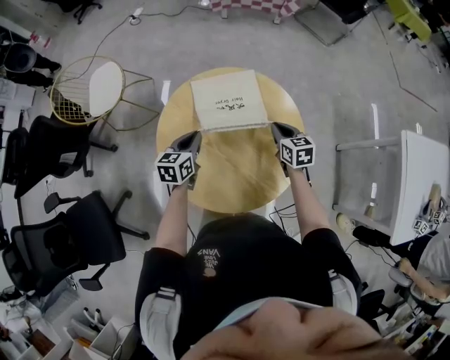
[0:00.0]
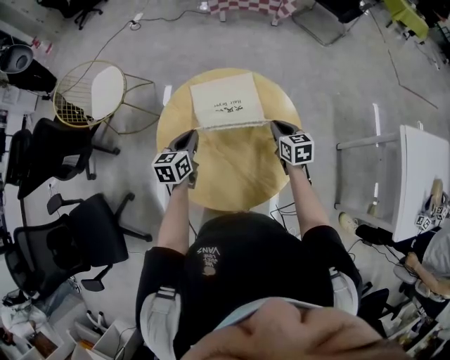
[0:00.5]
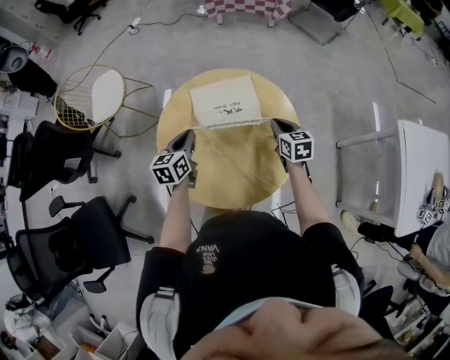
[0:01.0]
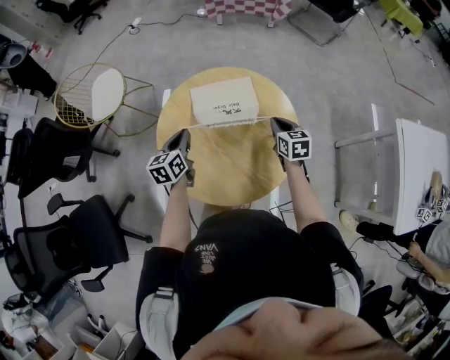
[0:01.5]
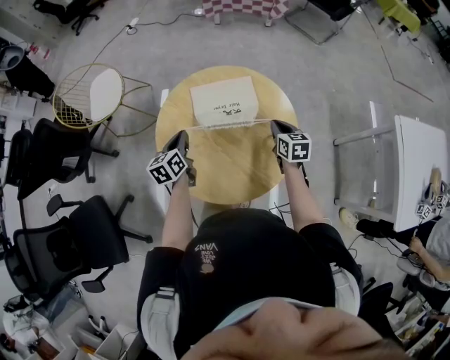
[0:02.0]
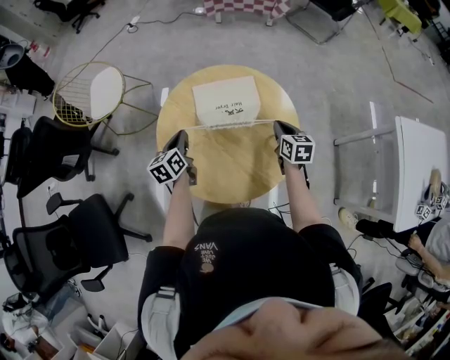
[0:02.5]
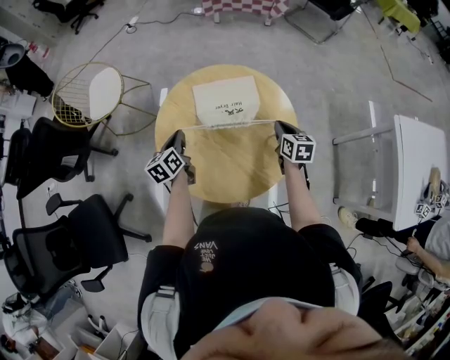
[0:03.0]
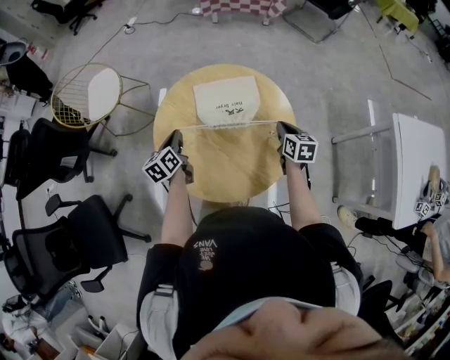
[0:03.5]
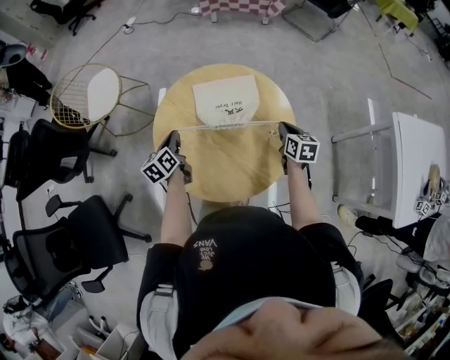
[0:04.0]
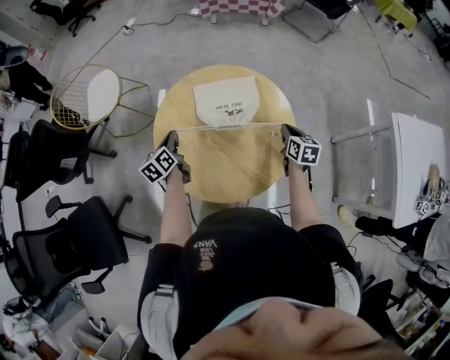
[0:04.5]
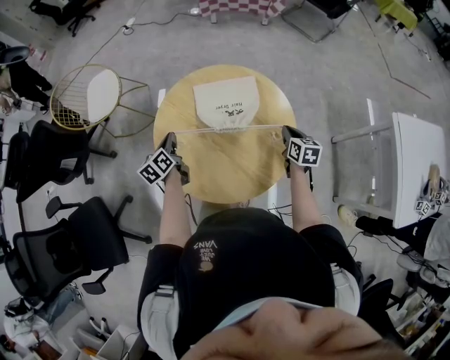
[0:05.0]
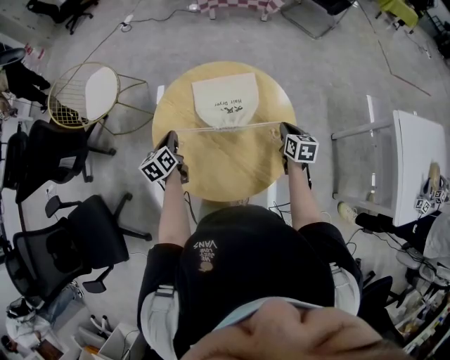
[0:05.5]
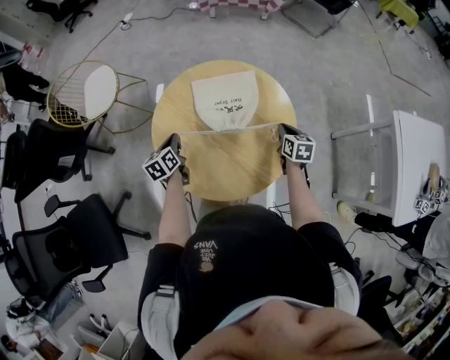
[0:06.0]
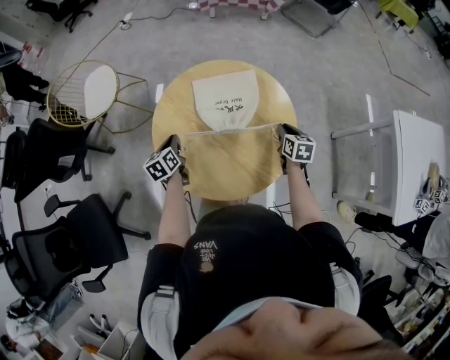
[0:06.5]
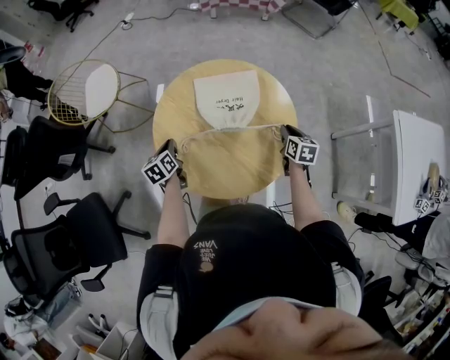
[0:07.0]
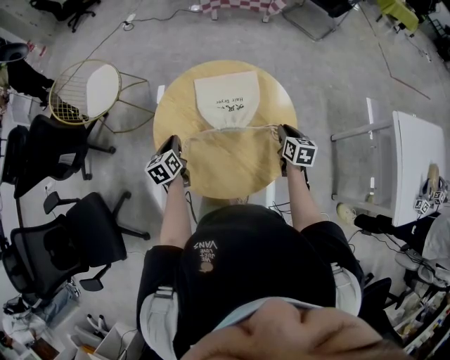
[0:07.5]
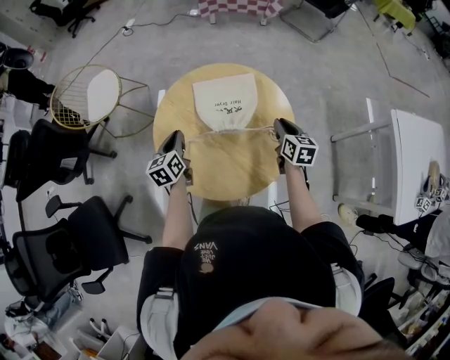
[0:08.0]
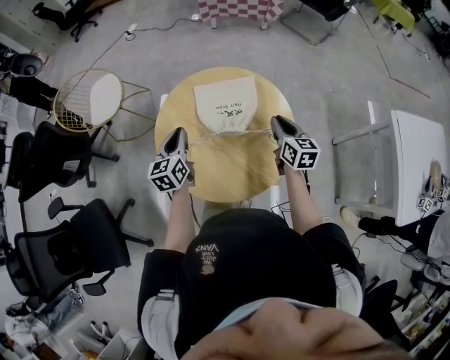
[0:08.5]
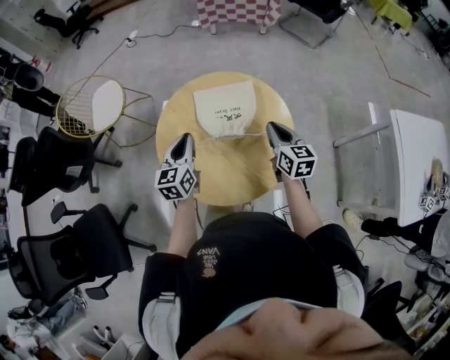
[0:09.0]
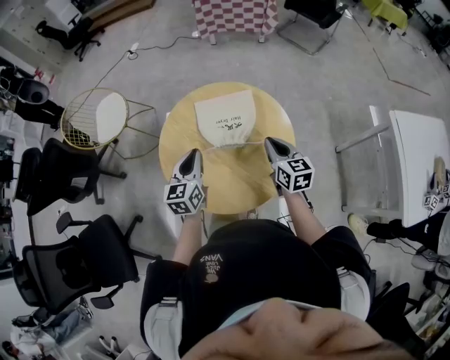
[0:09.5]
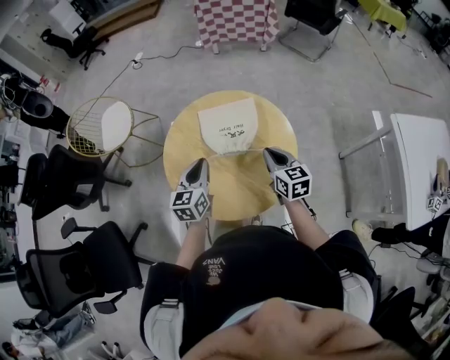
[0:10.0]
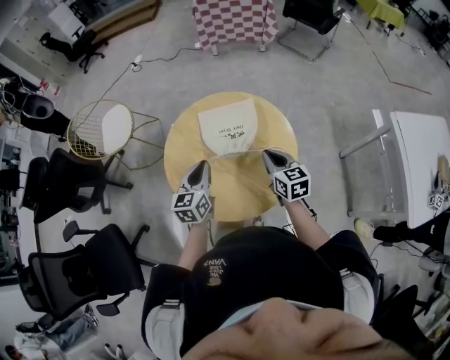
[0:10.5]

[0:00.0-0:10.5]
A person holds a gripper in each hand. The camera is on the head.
0:00.0 to 0:02.0: The left gripper ends up some 5 cm from where it was.
0:02.0 to 0:04.0: The grippers move only a little.
0:04.0 to 0:06.5: The grippers stay close to where they were, moving slightly.
0:06.5 to 0:08.5: The right gripper travels upward by some 15 cm, and changes its angle by roughly 20 degrees; the left gripper is displaced upward and to the right by approximately 15 cm, and changes its angle by some 20 degrees.
0:08.5 to 0:10.5: The left gripper travels to the right and backward by about 10 cm, while the right gripper is displaced backward by roughly 5 cm.

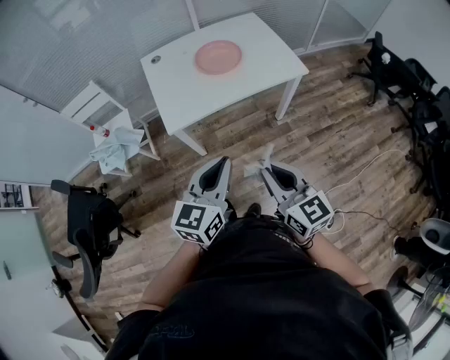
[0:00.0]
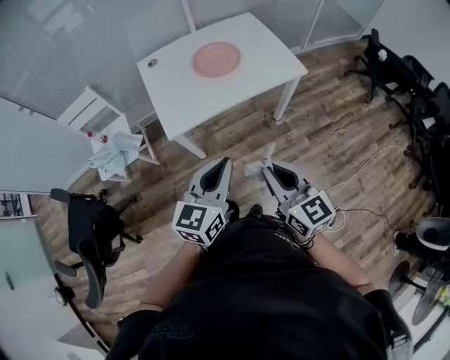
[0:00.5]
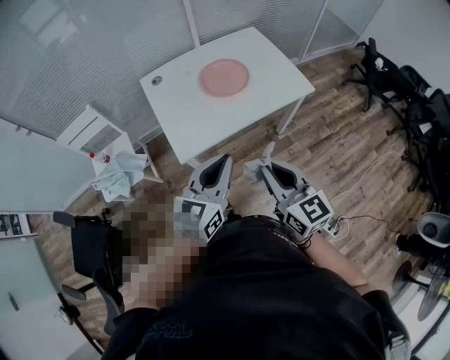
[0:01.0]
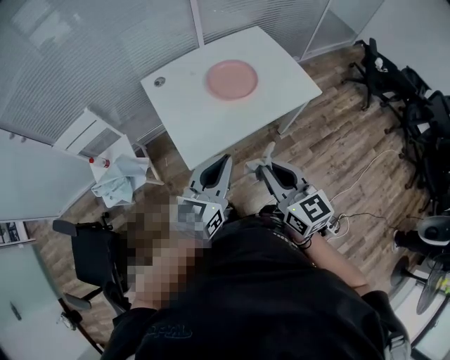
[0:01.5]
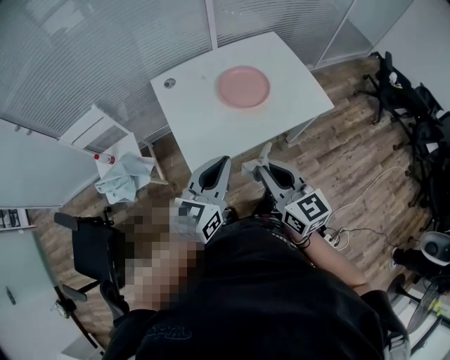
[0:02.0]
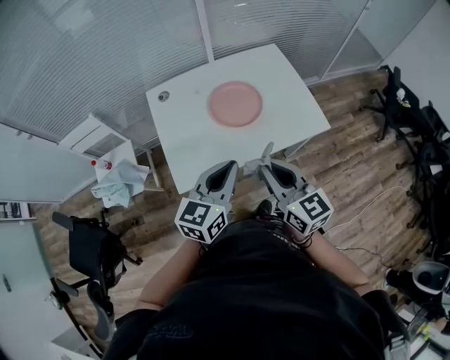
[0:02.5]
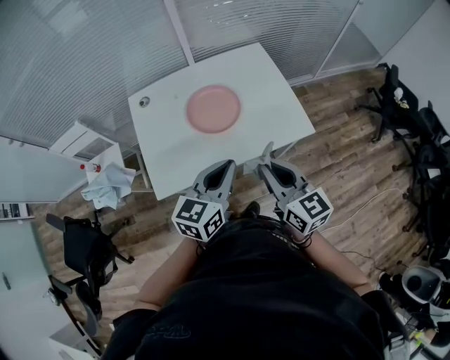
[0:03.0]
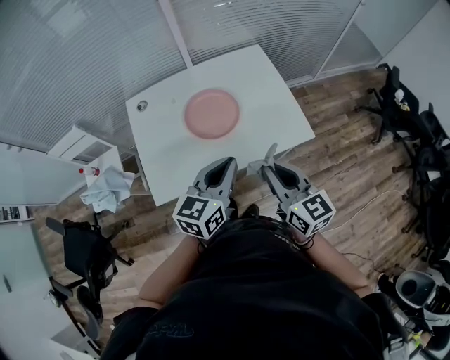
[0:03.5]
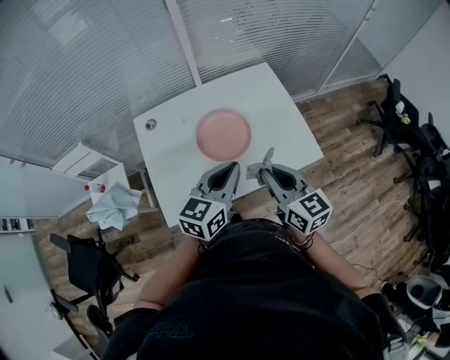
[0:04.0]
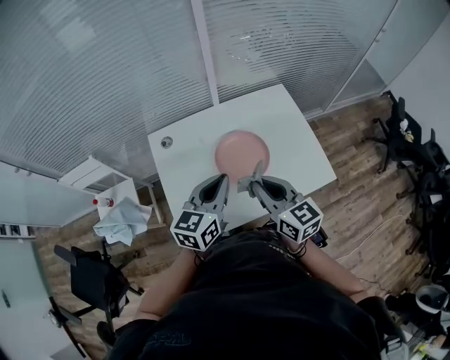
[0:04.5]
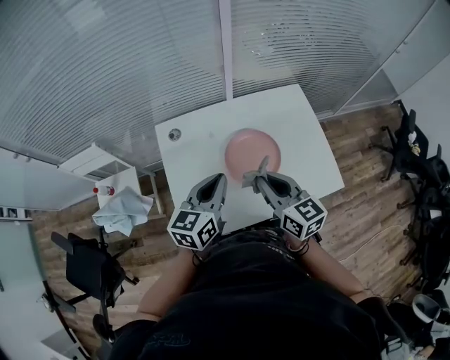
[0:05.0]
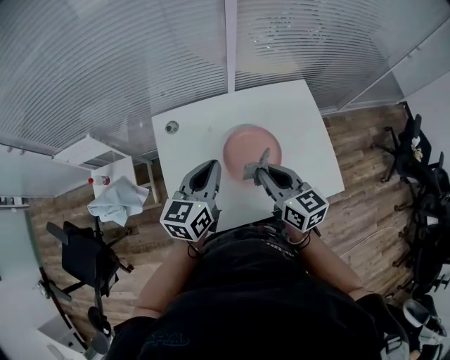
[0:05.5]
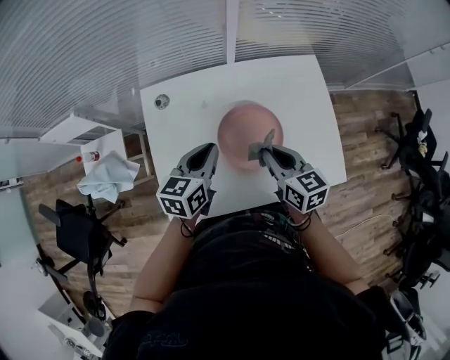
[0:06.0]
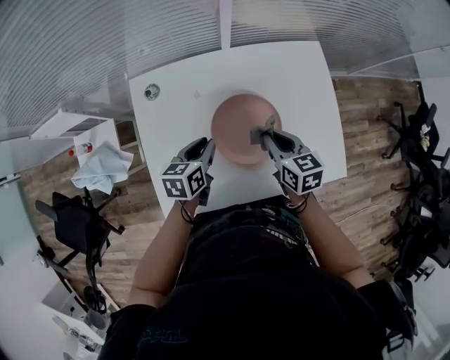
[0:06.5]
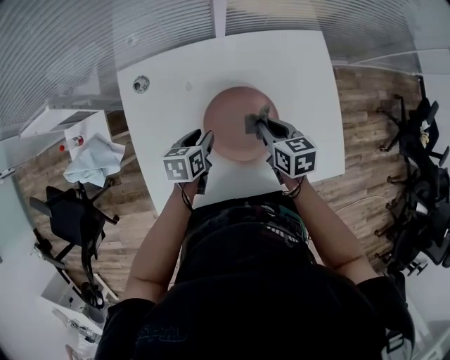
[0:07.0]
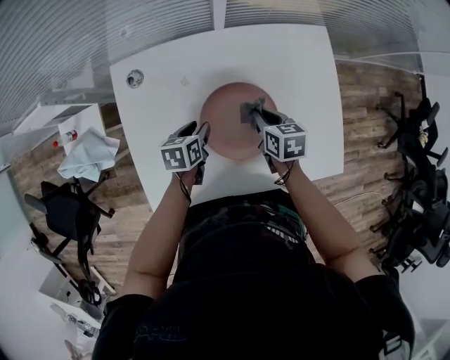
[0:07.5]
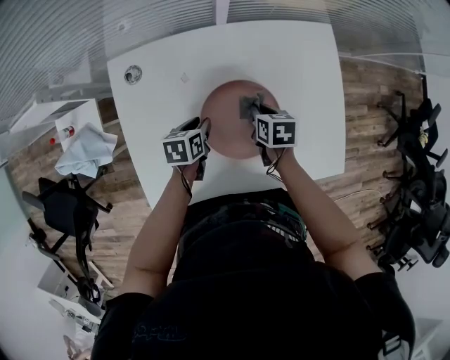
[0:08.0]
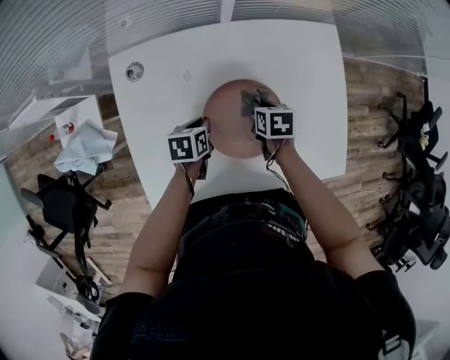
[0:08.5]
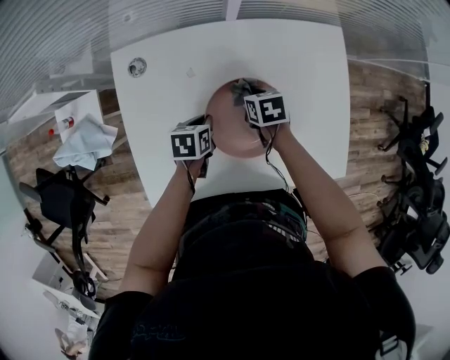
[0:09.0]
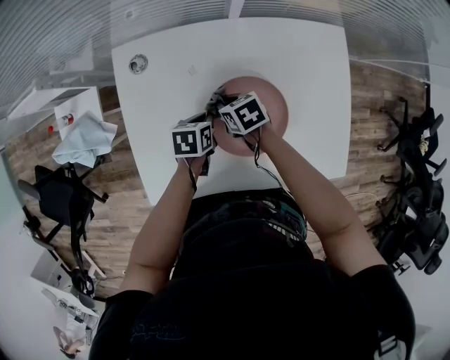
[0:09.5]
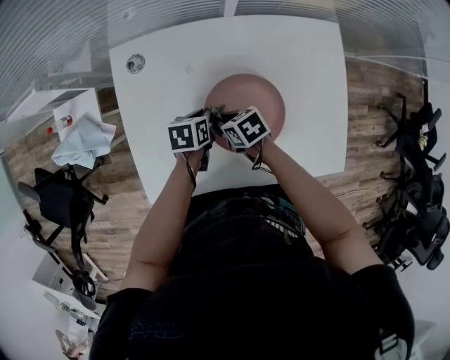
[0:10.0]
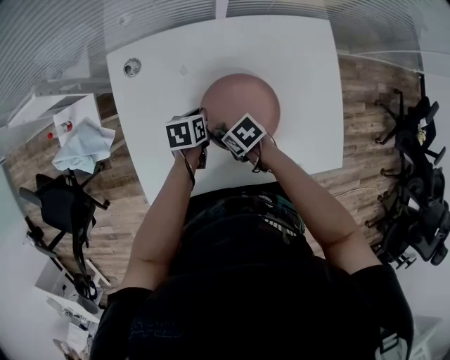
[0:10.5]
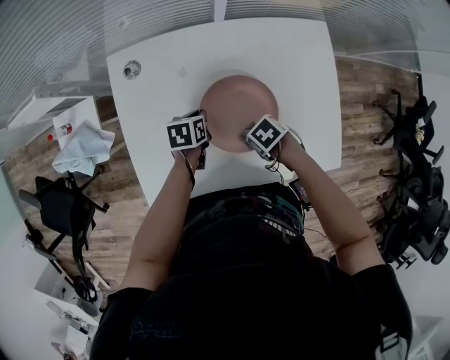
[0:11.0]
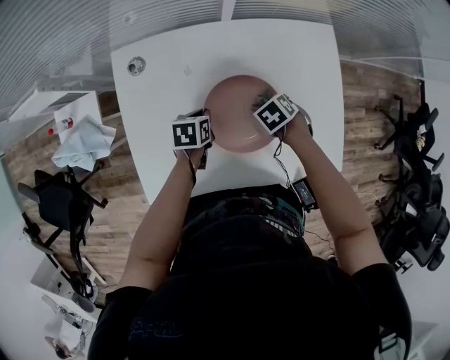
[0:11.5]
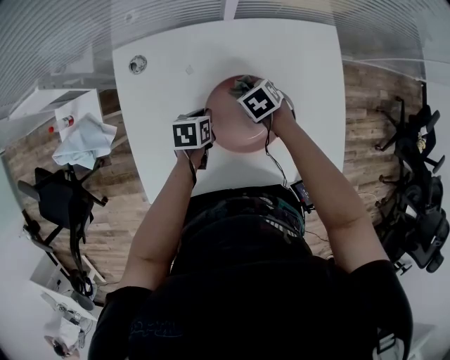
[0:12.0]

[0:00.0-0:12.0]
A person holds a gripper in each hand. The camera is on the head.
0:00.0 to 0:02.0: The two grippers go some 25 cm forward and to the left.
0:02.0 to 0:04.0: The two grippers go roughly 25 cm forward and to the right.
0:04.0 to 0:06.0: The right gripper travels forward, downward and to the left by approximately 20 cm; the left gripper shifts some 25 cm forward, to the left and downward, and turns by some 20 degrees.
0:06.0 to 0:08.0: The left gripper travels downward by some 20 cm, swivels roughly 30 degrees, and opens up. The right gripper shifts roughly 20 cm downward and forward, and changes its angle by roughly 30 degrees.
0:08.0 to 0:10.0: The left gripper closes up, while the right gripper shifts by some 15 cm, and changes its angle by roughly 30 degrees.
0:10.0 to 0:12.0: The right gripper changes place by about 15 cm, and changes its angle by about 30 degrees.

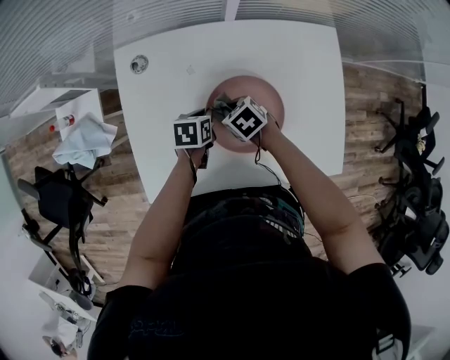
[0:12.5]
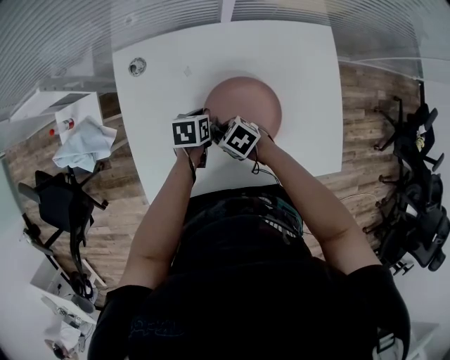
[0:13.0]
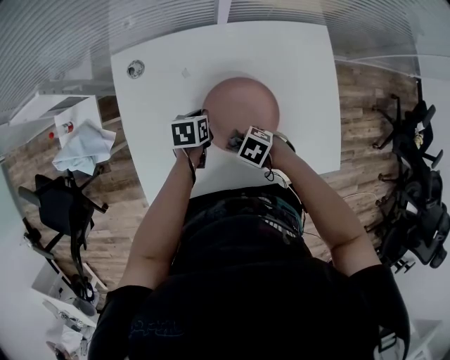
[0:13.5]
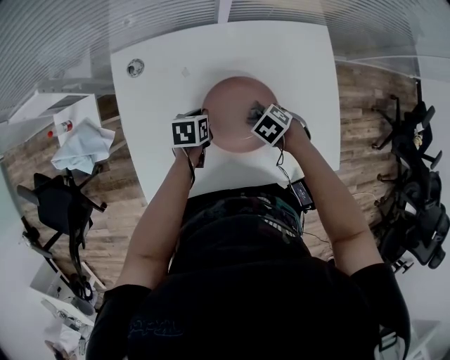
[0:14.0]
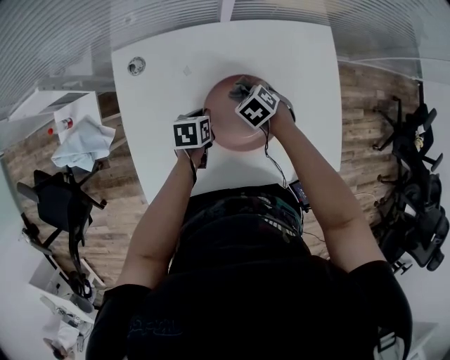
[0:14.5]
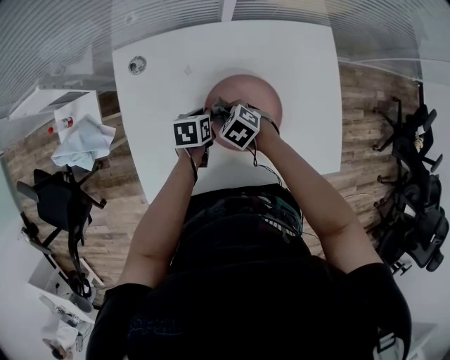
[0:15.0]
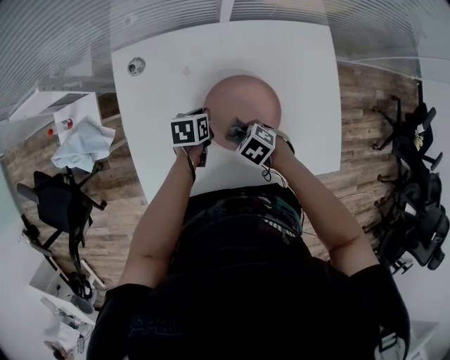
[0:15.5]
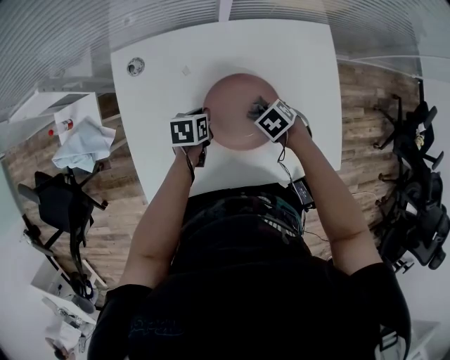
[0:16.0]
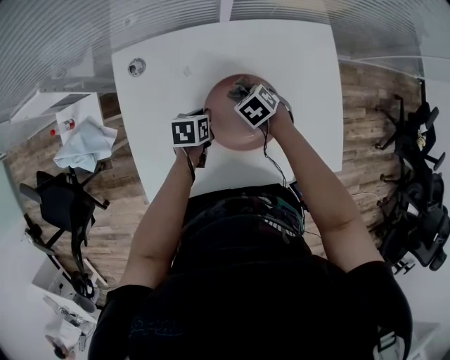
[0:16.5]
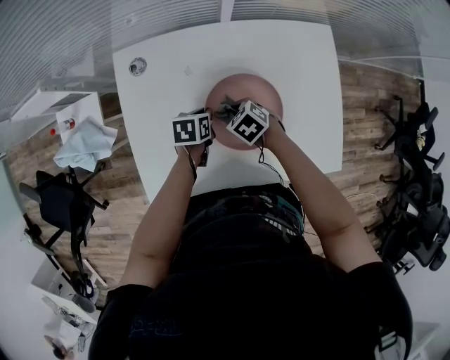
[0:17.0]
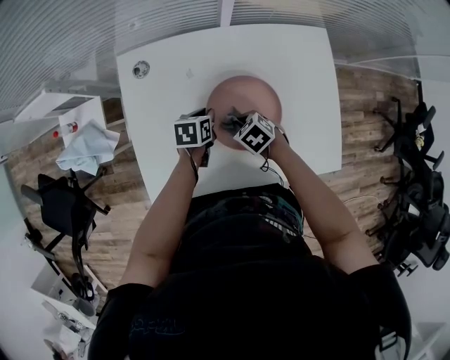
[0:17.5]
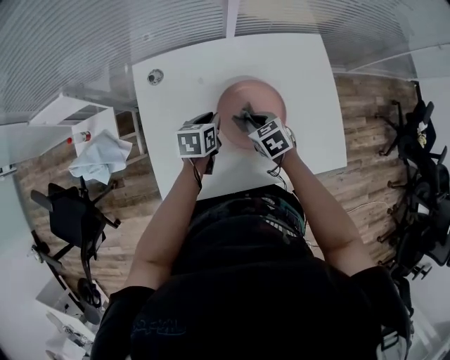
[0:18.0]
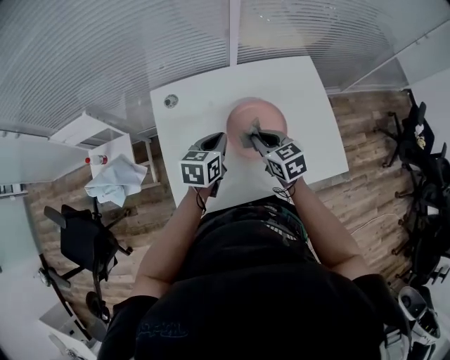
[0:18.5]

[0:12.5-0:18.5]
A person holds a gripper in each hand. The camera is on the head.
0:12.5 to 0:14.5: The right gripper changes place by roughly 10 cm.
0:16.5 to 0:18.5: The right gripper heads upward and backward, covering roughly 20 cm, and tilts its fingers about 40 degrees upward; the left gripper heads upward, covering roughly 20 cm, and rotates approximately 30 degrees.
